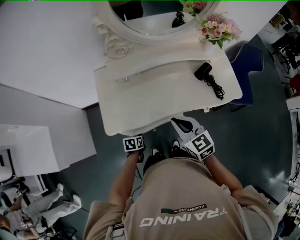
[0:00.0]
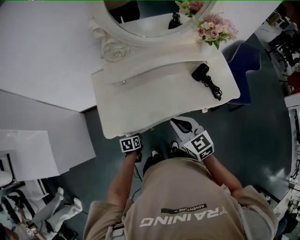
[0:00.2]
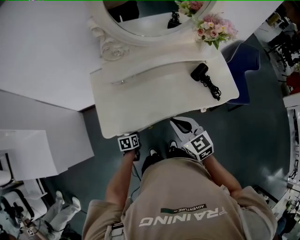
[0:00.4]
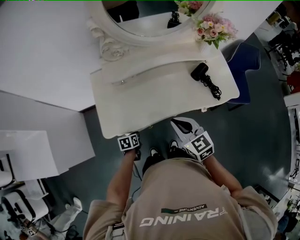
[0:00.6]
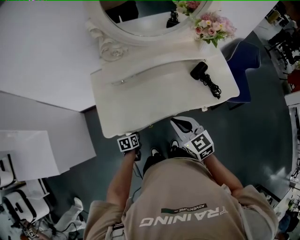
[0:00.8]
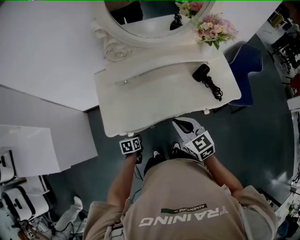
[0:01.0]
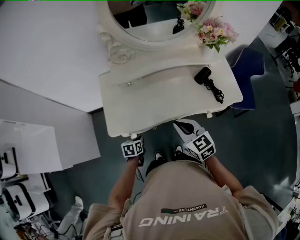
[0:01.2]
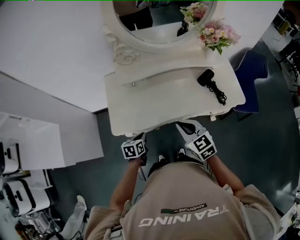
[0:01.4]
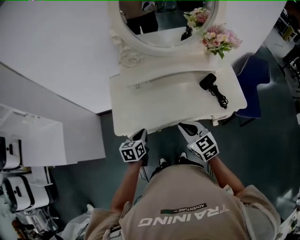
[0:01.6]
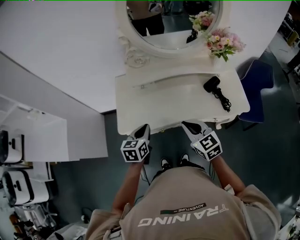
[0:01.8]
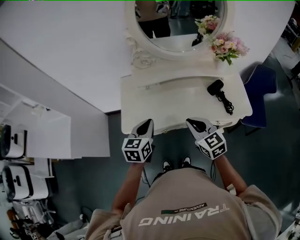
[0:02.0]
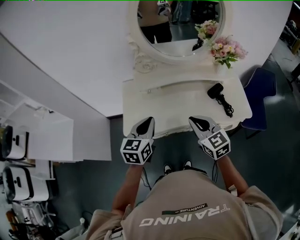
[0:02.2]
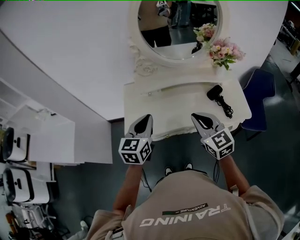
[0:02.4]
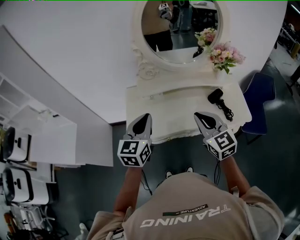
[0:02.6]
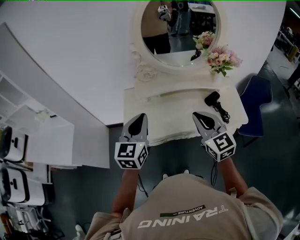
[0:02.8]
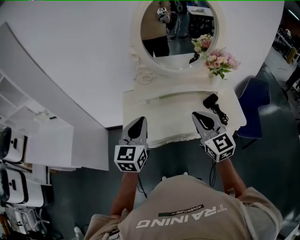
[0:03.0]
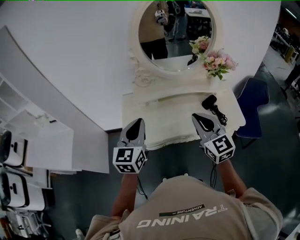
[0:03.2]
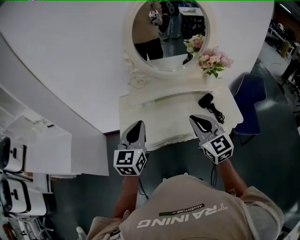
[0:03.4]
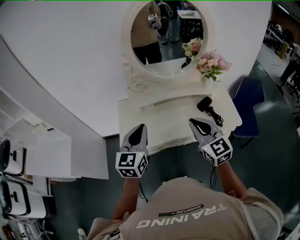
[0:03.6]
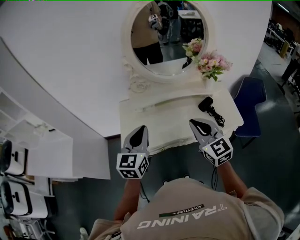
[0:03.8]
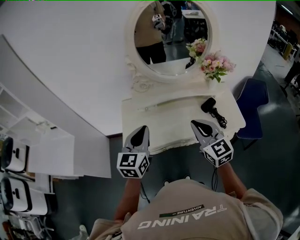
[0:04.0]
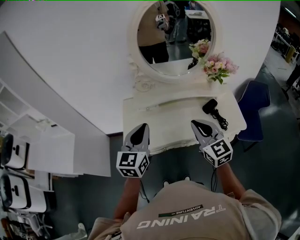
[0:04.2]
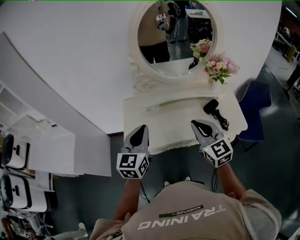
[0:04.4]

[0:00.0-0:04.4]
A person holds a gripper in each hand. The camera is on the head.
0:00.0 to 0:01.4: The left gripper shifts about 10 cm upward.
0:01.4 to 0:03.0: The left gripper heads upward, covering roughly 35 cm, and tips its fingers upward by about 40 degrees. The right gripper heads upward, covering approximately 20 cm, and rotates roughly 20 degrees.
0:03.0 to 0:04.4: There are only small adjustments of the grippers.

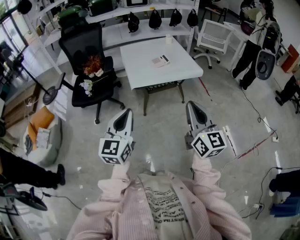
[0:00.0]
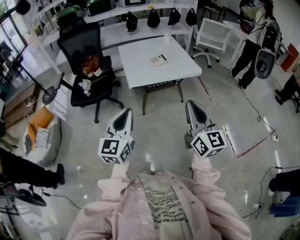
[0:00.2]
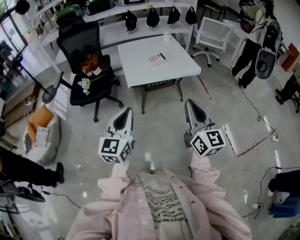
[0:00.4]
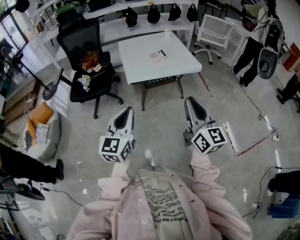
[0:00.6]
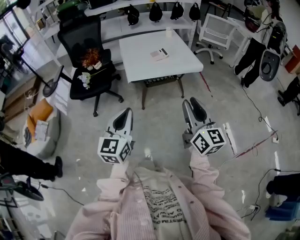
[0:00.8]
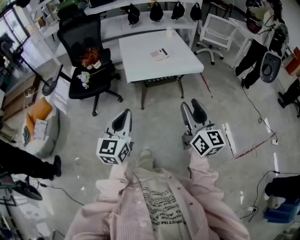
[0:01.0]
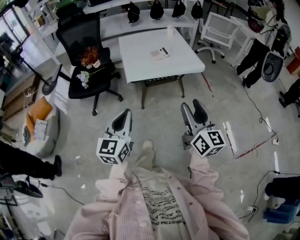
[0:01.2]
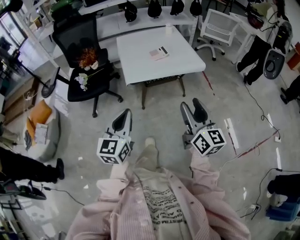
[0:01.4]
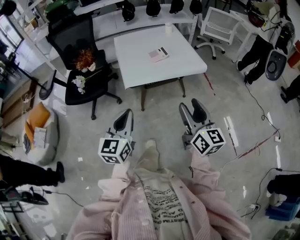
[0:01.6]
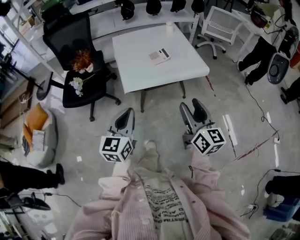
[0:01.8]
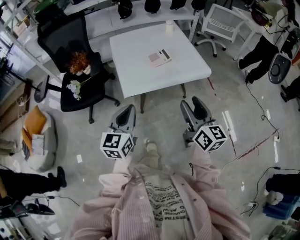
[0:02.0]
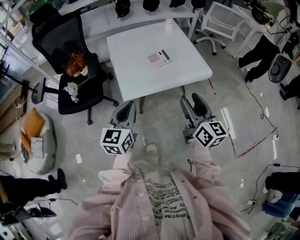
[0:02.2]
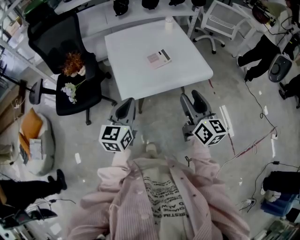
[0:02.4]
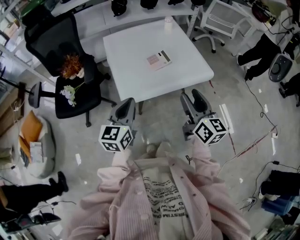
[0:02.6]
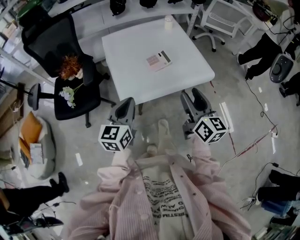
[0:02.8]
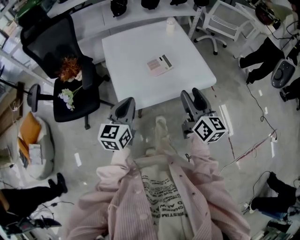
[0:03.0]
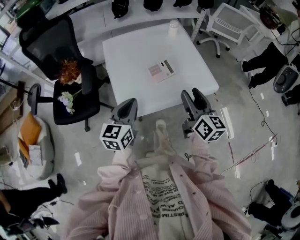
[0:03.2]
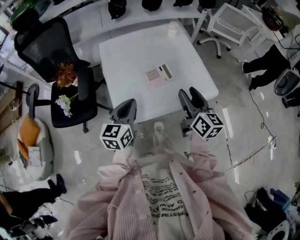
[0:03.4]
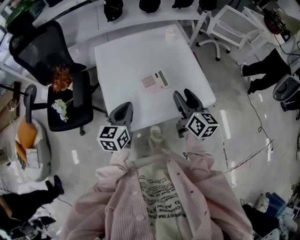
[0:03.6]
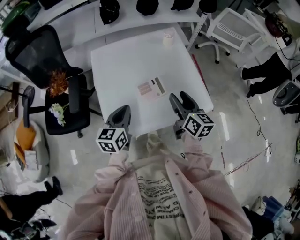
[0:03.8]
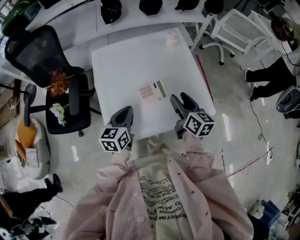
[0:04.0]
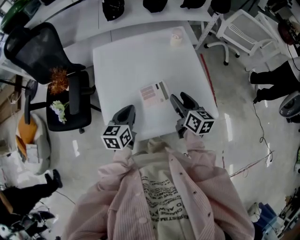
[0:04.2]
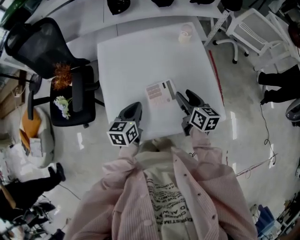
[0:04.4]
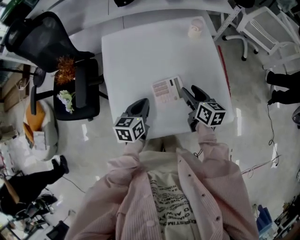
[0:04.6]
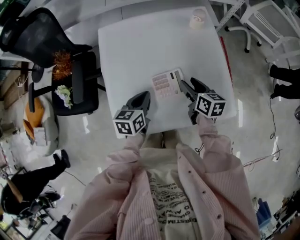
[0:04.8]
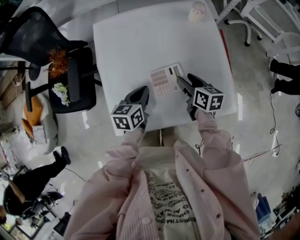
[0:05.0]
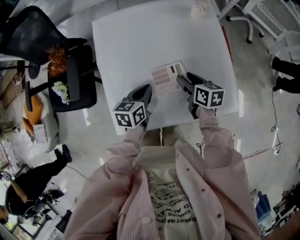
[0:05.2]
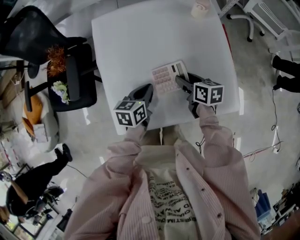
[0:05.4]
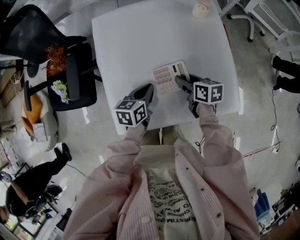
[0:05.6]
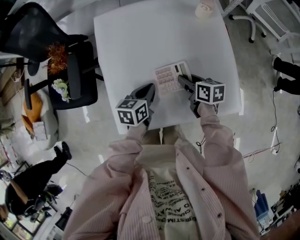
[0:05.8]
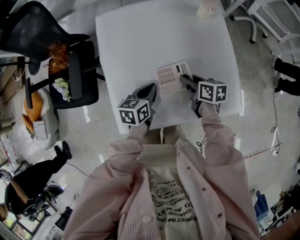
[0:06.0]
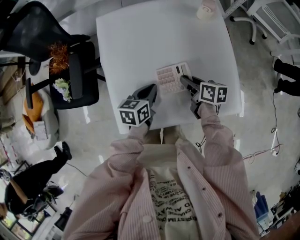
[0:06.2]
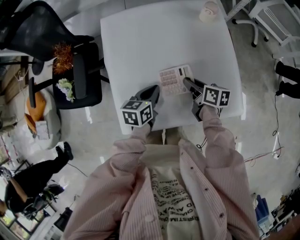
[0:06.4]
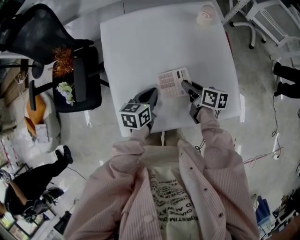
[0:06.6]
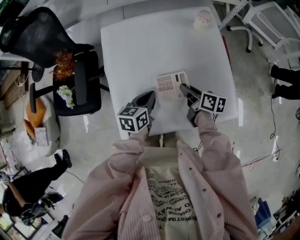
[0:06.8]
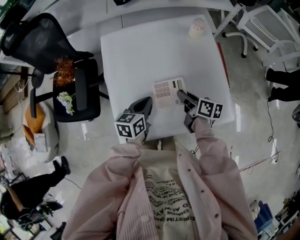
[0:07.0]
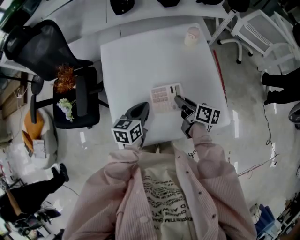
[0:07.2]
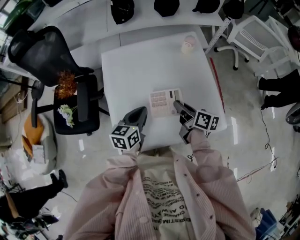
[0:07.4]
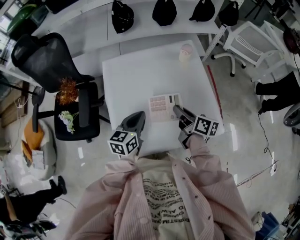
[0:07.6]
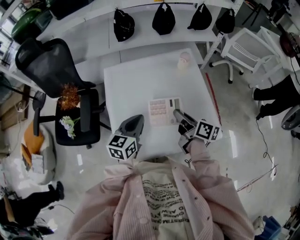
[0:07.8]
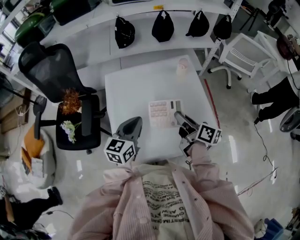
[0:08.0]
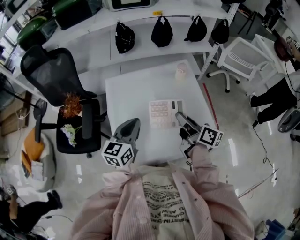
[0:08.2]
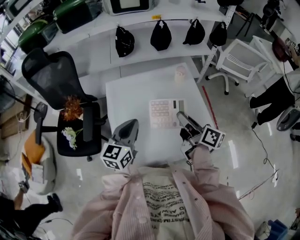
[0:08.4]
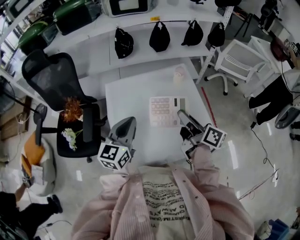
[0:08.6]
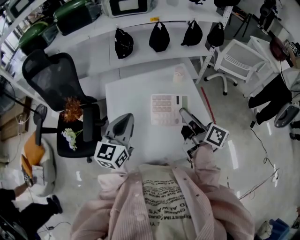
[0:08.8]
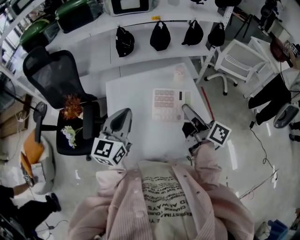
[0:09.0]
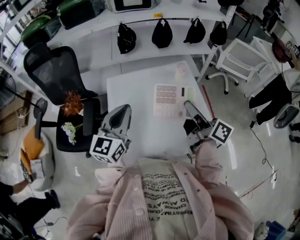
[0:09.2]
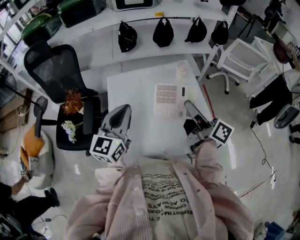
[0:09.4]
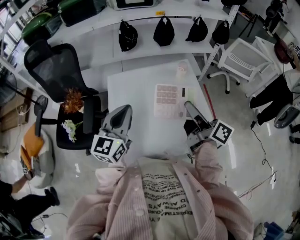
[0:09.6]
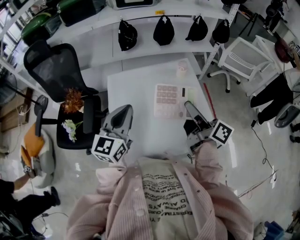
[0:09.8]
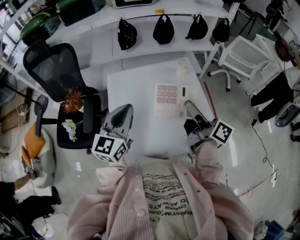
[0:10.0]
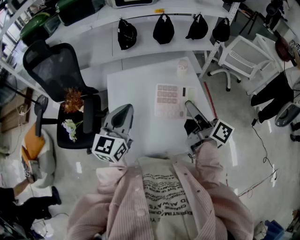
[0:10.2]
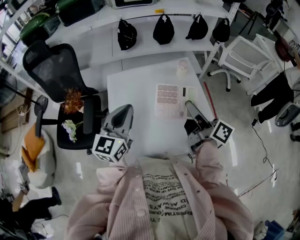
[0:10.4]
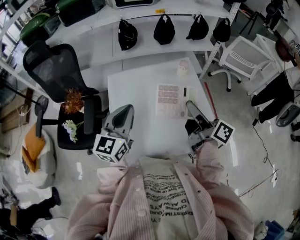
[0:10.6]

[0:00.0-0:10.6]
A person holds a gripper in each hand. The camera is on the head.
0:00.0 to 0:01.6: The two grippers go some 15 cm forward and downward. The right gripper opens.
0:01.6 to 0:03.0: Both grippers move forward, roughly 30 cm.
0:03.0 to 0:04.6: The grippers both shift forward and downward by some 30 cm. The left gripper turns by about 30 degrees. The right gripper changes its angle by approximately 30 degrees.
0:04.6 to 0:06.0: Both grippers move downward, some 5 cm. The right gripper changes its angle by about 20 degrees, and closes.
0:06.0 to 0:07.6: Both grippers move upward, roughly 15 cm. The right gripper swivels roughly 30 degrees.
0:07.6 to 0:09.0: Both grippers move upward, roughly 20 cm. The left gripper rotates some 30 degrees, while the right gripper rotates roughly 20 degrees.
0:09.0 to 0:10.6: Neither gripper changes place.

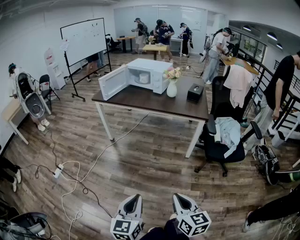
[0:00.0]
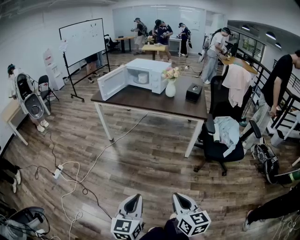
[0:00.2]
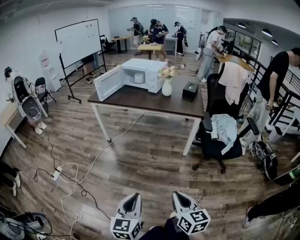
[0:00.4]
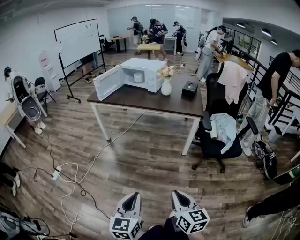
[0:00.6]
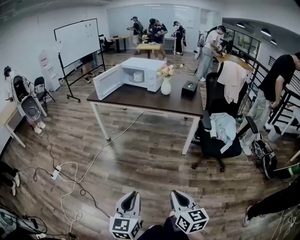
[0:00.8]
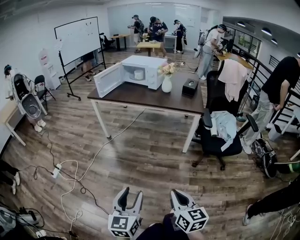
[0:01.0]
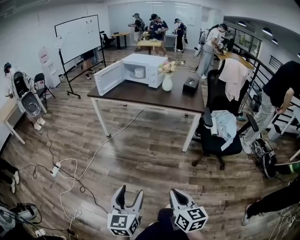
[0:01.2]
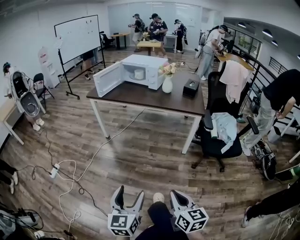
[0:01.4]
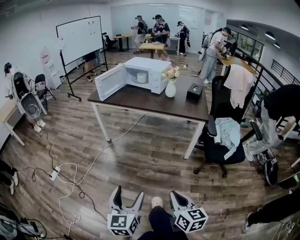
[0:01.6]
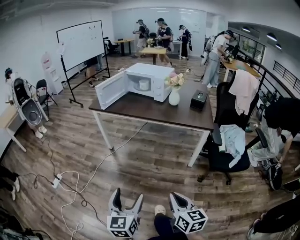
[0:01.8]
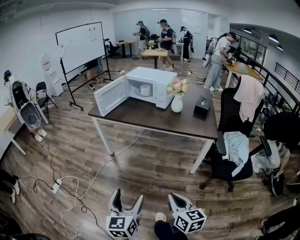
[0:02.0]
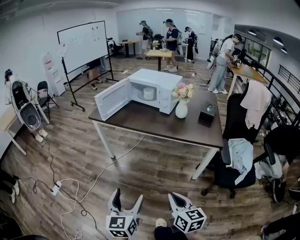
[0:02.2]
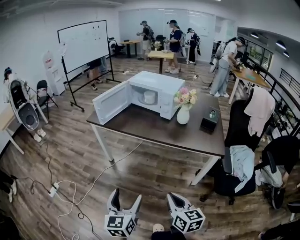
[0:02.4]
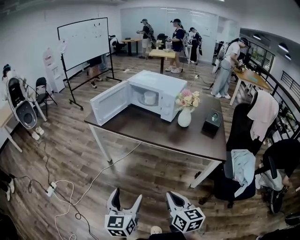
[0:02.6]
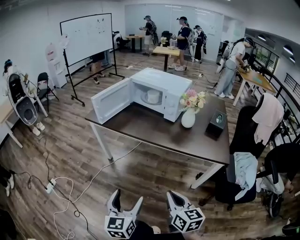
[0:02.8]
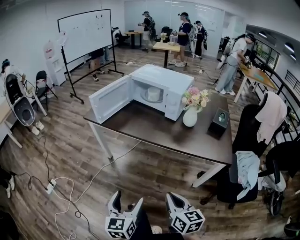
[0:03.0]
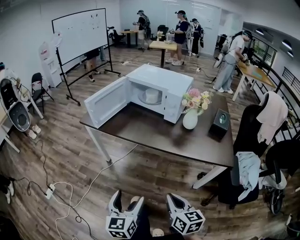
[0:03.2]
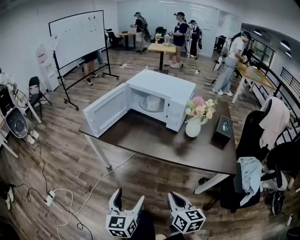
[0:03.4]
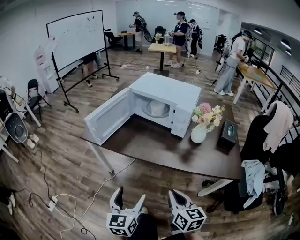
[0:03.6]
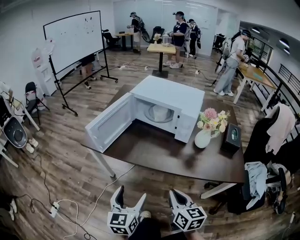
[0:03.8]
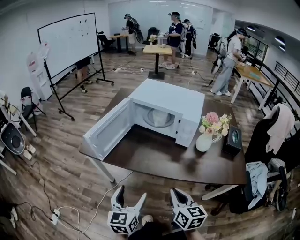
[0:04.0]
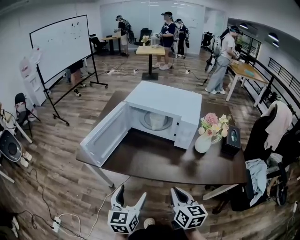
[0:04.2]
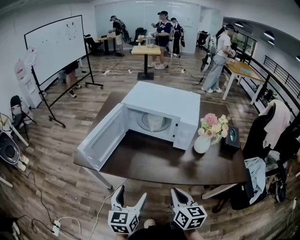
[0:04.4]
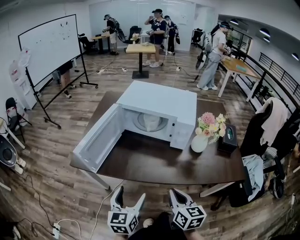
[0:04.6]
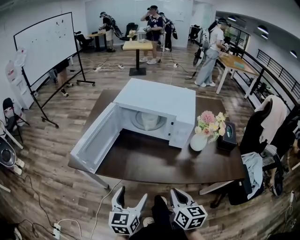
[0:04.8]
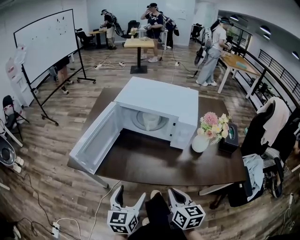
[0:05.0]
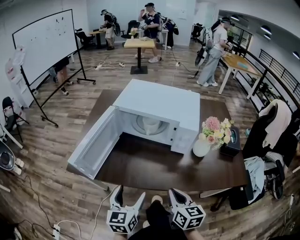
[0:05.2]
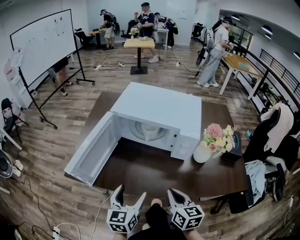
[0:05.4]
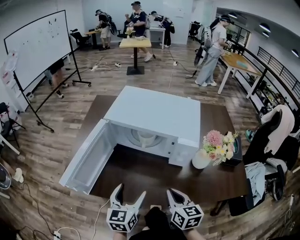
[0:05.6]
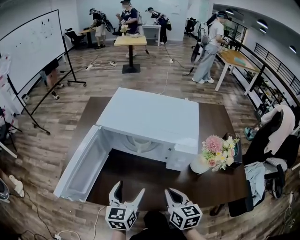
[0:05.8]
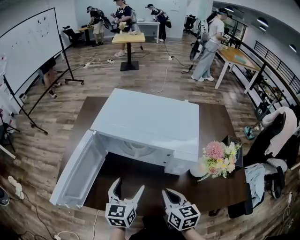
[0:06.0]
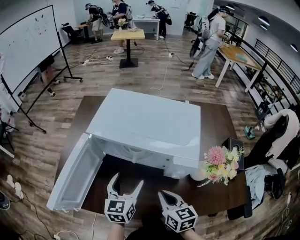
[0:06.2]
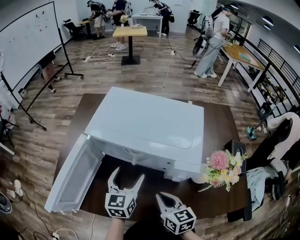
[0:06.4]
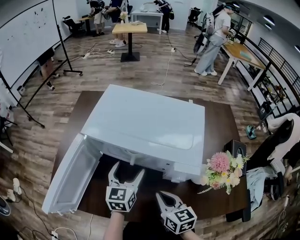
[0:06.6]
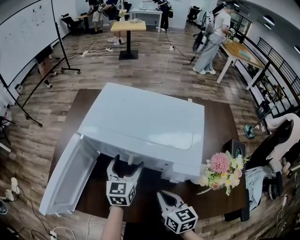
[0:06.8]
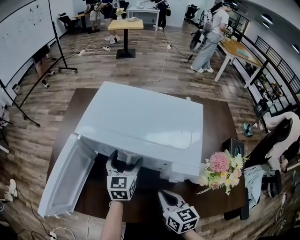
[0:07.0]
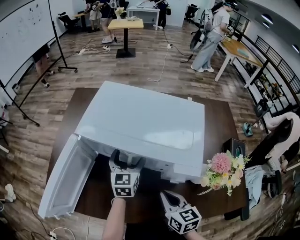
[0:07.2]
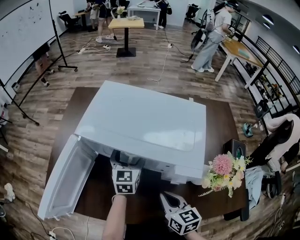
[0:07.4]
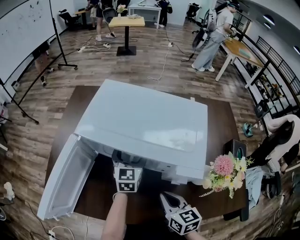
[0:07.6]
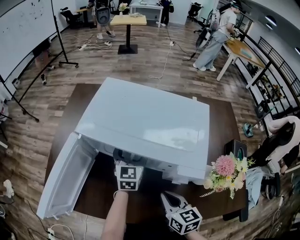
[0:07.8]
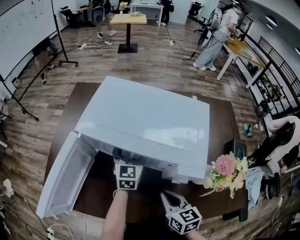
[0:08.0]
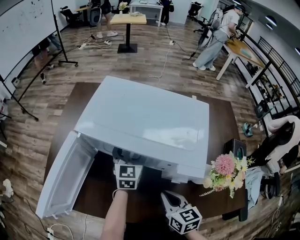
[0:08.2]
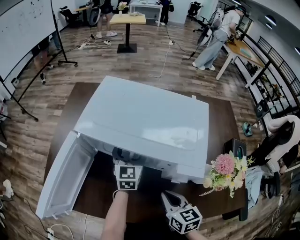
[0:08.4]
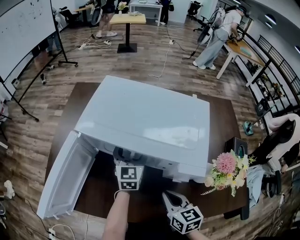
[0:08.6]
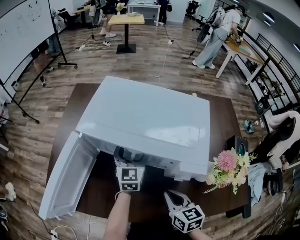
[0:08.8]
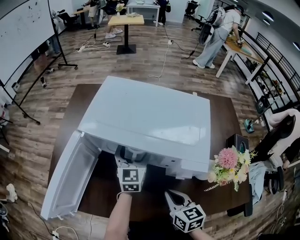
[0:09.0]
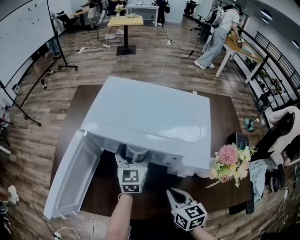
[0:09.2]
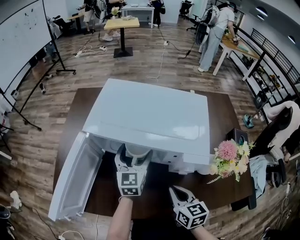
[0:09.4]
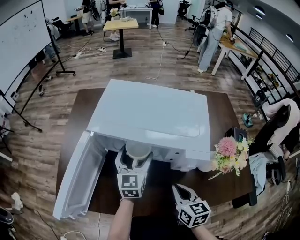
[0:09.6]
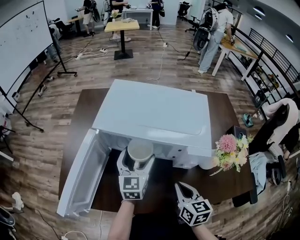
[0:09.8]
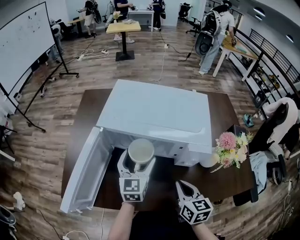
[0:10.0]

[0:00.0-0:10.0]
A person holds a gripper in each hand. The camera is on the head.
0:00.0 to 0:01.4: The left gripper opens.
0:01.4 to 0:02.8: Both grippers travel together forward, roughly 40 cm.
0:02.8 to 0:04.2: The two grippers go roughly 35 cm forward.
0:04.2 to 0:05.8: The two grippers go approximately 20 cm forward.
0:05.8 to 0:07.2: The right gripper is displaced forward by roughly 5 cm, while the left gripper moves forward, some 20 cm.
0:07.2 to 0:08.6: There are only small adjustments of the grippers.
0:08.6 to 0:10.0: The right gripper changes place by roughly 5 cm, while the left gripper is displaced backward, upward and to the left by some 15 cm.
